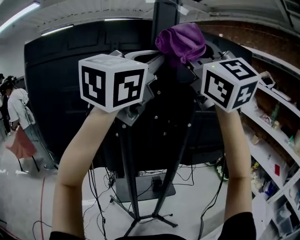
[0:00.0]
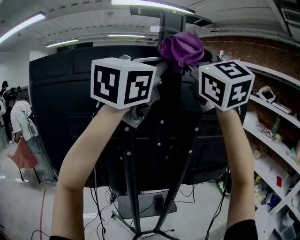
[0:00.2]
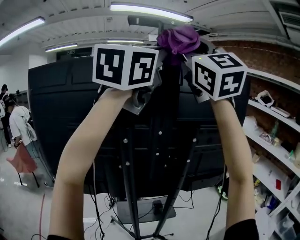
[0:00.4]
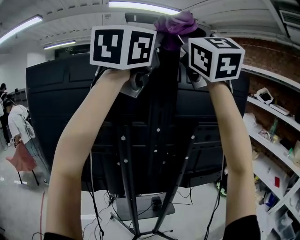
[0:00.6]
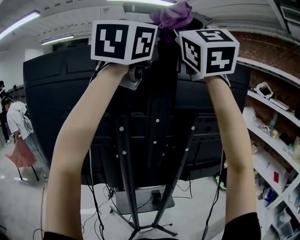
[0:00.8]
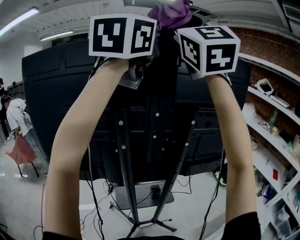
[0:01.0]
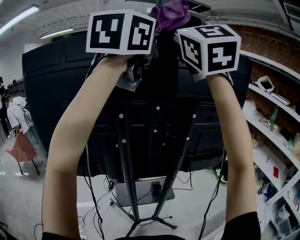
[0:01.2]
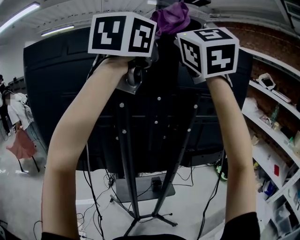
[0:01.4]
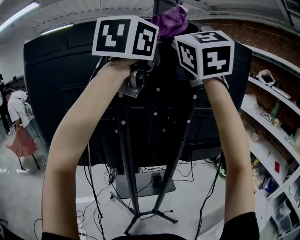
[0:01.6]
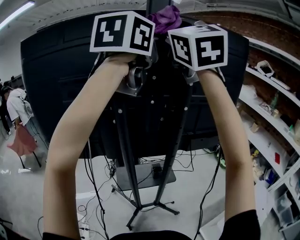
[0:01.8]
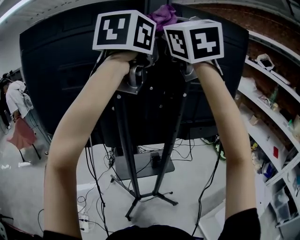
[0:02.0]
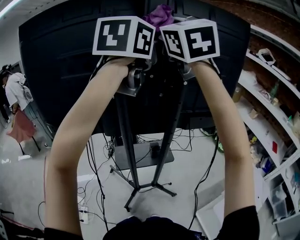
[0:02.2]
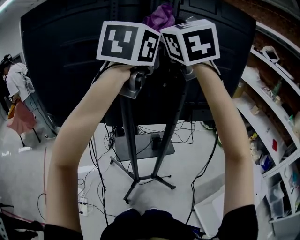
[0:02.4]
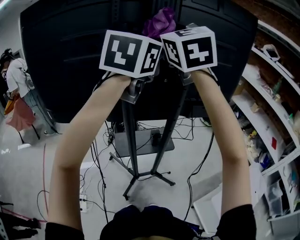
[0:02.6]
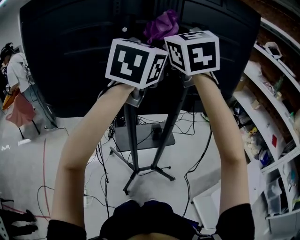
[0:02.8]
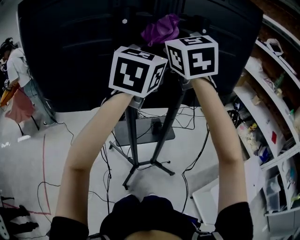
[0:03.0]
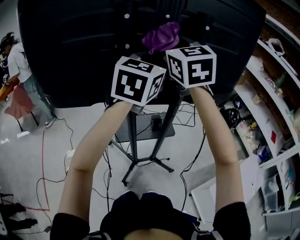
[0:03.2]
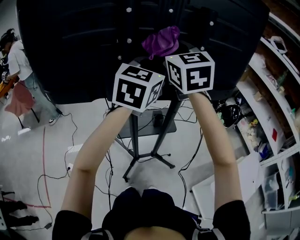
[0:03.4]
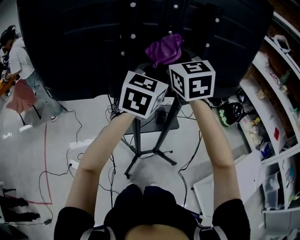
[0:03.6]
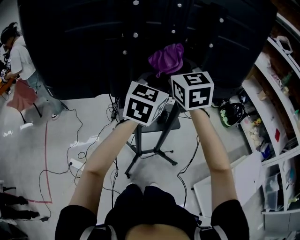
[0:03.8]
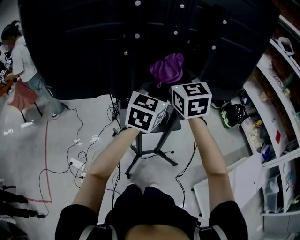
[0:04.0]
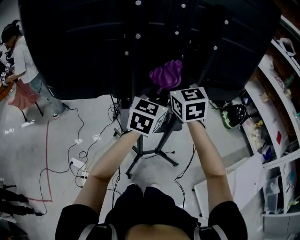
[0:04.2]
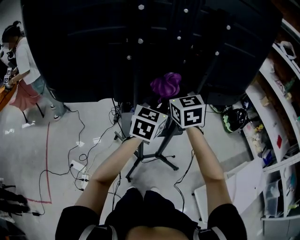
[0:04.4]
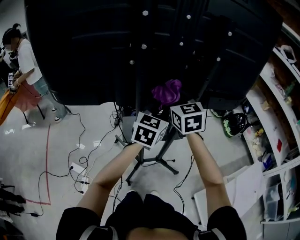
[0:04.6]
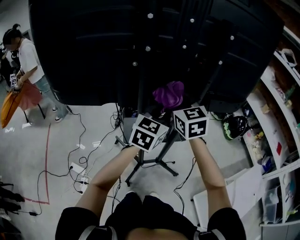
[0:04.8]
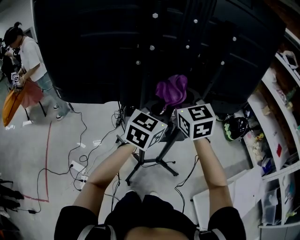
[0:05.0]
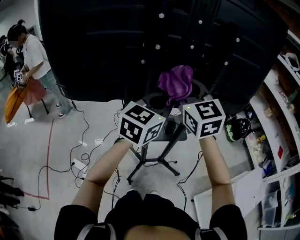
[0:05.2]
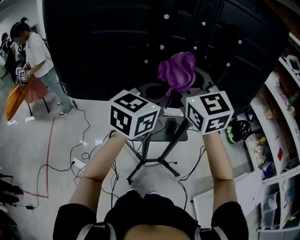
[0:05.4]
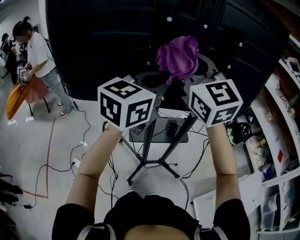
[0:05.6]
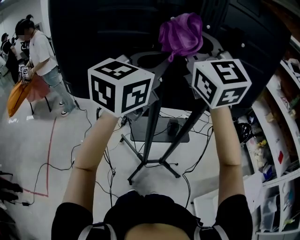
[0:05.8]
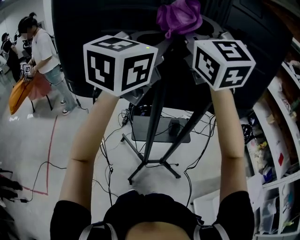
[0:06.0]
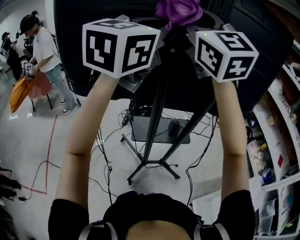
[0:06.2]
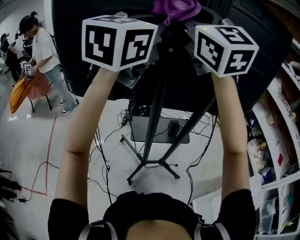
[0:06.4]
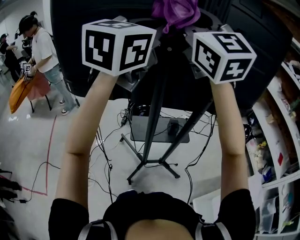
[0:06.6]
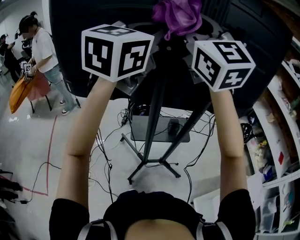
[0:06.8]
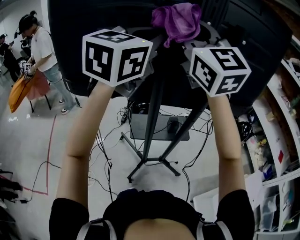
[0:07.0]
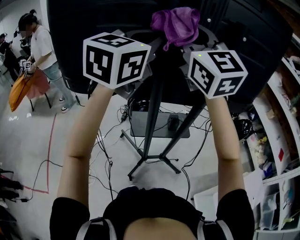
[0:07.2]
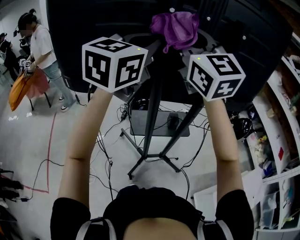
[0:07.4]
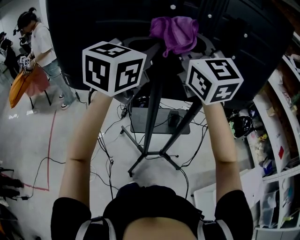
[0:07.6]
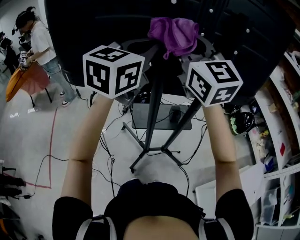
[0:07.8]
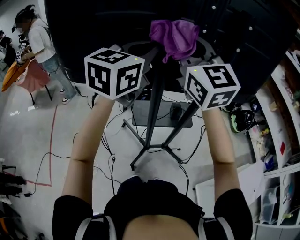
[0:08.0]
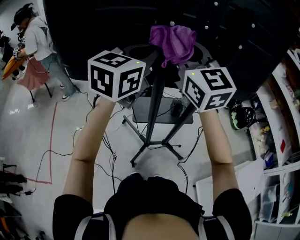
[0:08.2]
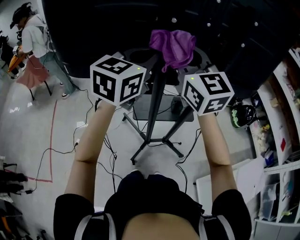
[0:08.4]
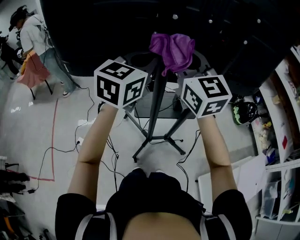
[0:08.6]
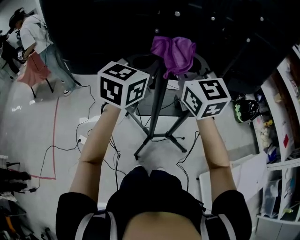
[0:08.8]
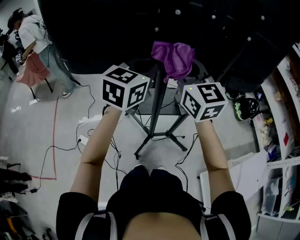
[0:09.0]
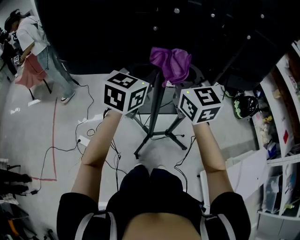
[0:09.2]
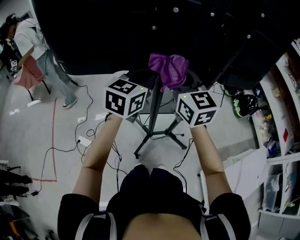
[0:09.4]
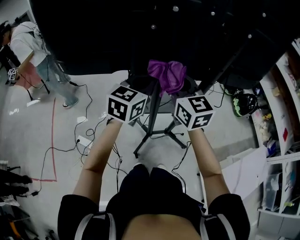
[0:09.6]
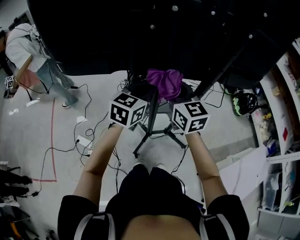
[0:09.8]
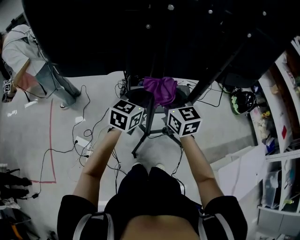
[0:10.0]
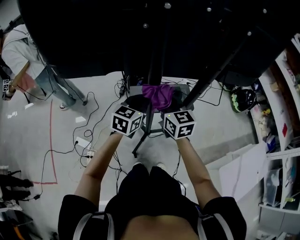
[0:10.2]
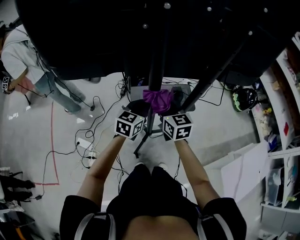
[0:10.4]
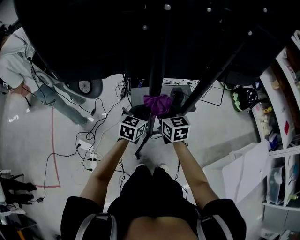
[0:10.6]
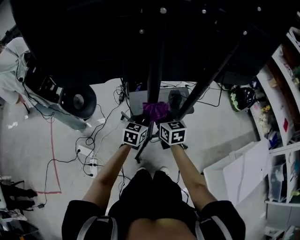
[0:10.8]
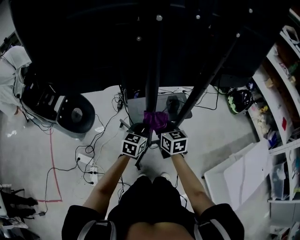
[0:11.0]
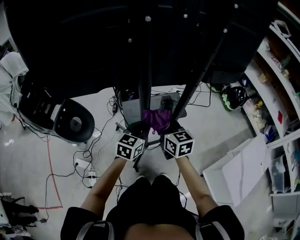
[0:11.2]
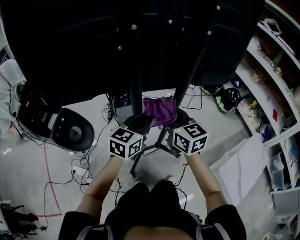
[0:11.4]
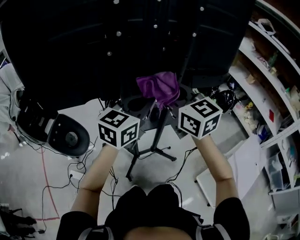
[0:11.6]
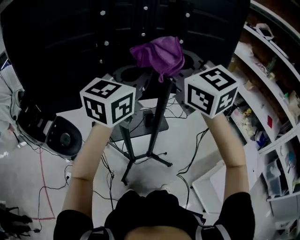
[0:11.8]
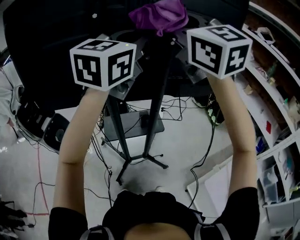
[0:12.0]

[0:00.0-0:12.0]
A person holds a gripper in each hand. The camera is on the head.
0:00.0 to 0:01.6: The left gripper travels upward and back again, roughly 15 cm each way; the right gripper moves approximately 15 cm upward and comes back.
0:01.6 to 0:03.0: The two grippers go some 25 cm downward. The right gripper turns by some 30 degrees.
0:03.0 to 0:04.4: Both grippers move downward, approximately 25 cm.
0:04.4 to 0:06.0: The left gripper travels upward and to the left by some 30 cm, and swivels about 20 degrees. The right gripper is displaced upward by roughly 30 cm, and turns by about 40 degrees.
0:06.0 to 0:07.6: The two grippers go about 5 cm downward.
0:07.6 to 0:09.0: The two grippers go some 15 cm downward.
0:09.0 to 0:10.4: The two grippers go approximately 25 cm downward. The right gripper rotates about 20 degrees.
0:10.4 to 0:12.0: Both grippers move upward, approximately 50 cm. The right gripper turns by approximately 40 degrees. Meanwhile the left gripper turns by about 30 degrees.

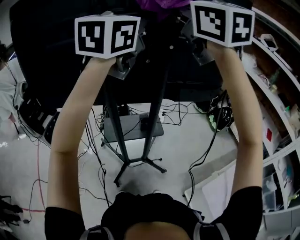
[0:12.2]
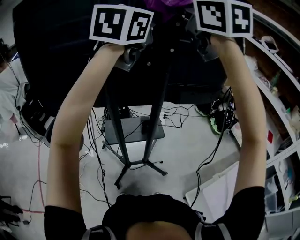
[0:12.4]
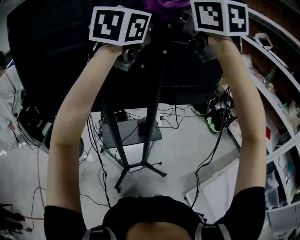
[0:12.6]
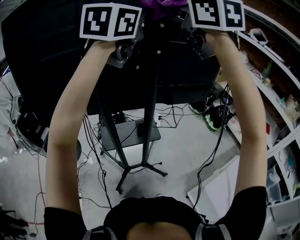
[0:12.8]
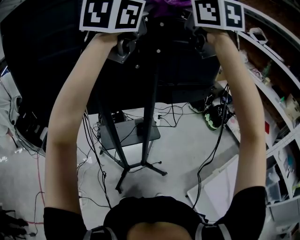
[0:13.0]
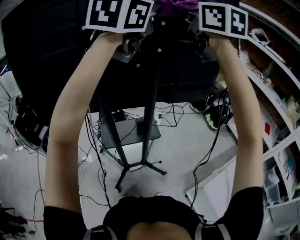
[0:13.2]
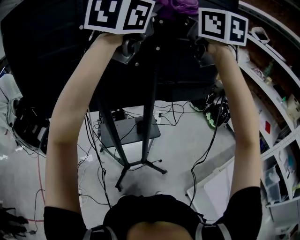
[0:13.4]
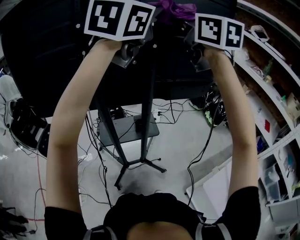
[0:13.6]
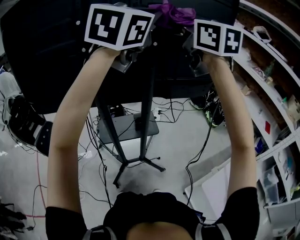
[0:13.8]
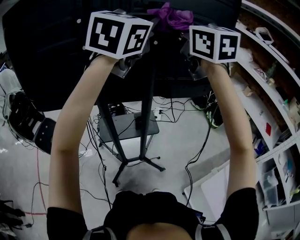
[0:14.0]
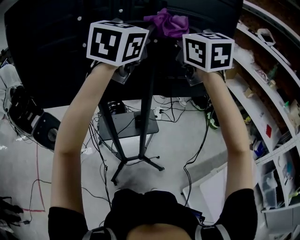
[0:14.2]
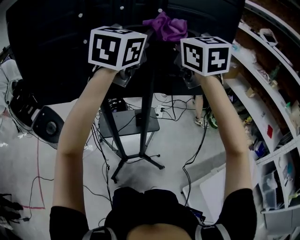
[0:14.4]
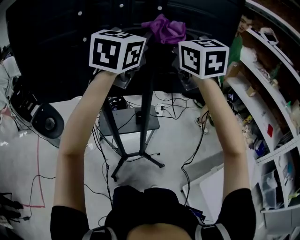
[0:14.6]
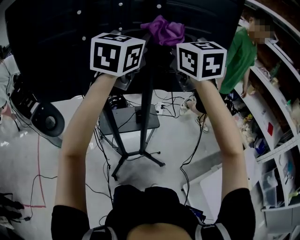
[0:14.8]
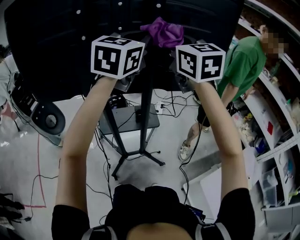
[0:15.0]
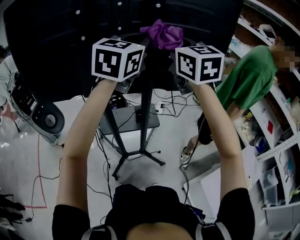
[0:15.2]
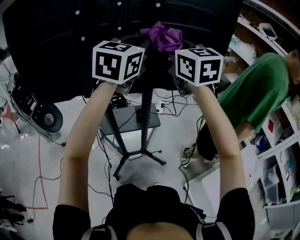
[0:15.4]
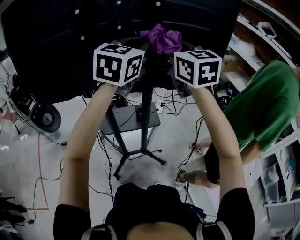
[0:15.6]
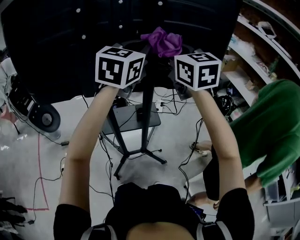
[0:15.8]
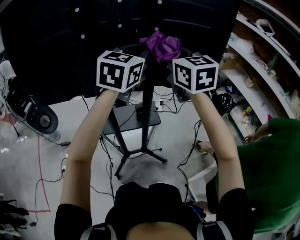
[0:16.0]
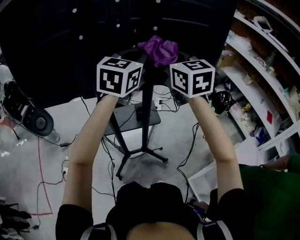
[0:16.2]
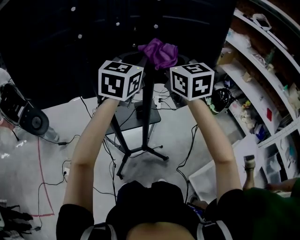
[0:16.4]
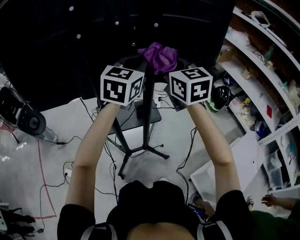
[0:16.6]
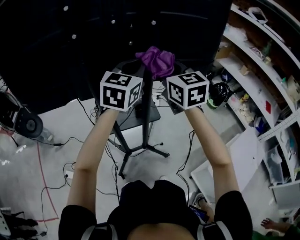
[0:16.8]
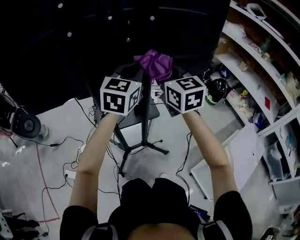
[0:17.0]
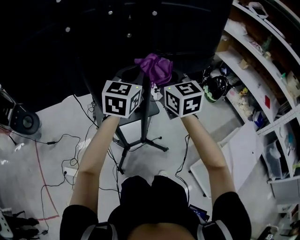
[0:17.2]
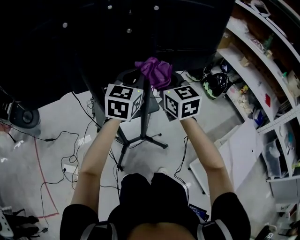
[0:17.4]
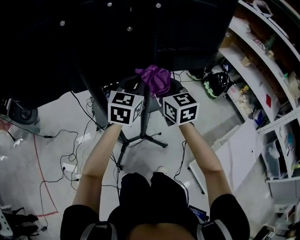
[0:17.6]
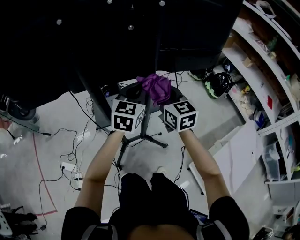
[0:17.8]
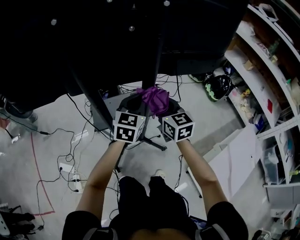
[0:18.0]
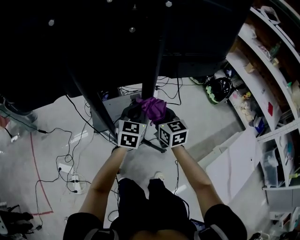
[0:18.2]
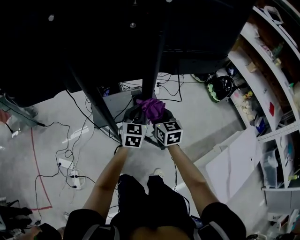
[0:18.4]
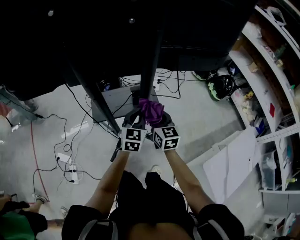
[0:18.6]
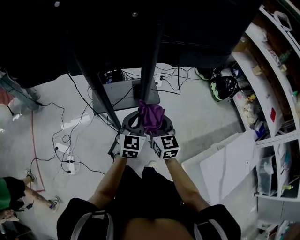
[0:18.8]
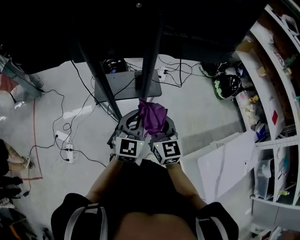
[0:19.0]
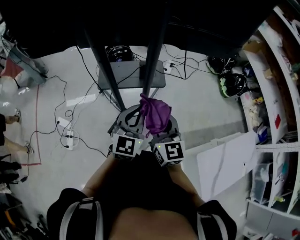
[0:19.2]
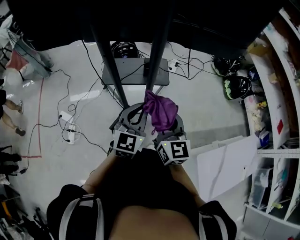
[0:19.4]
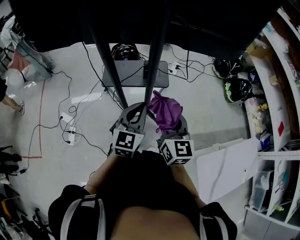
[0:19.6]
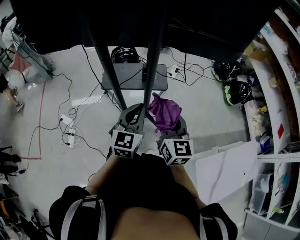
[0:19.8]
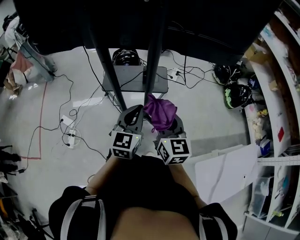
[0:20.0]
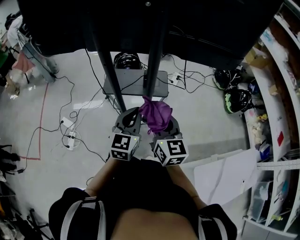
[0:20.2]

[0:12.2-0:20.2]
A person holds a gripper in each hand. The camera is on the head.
0:12.2 to 0:13.8: The left gripper moves to the right, approximately 5 cm. Meanwhile the right gripper is displaced to the right and downward by about 10 cm.
0:13.8 to 0:15.4: Both grippers move downward, some 10 cm.
0:15.4 to 0:17.0: Both grippers travel together downward, approximately 15 cm.
0:17.0 to 0:18.6: The grippers both shift downward by roughly 30 cm.
0:18.6 to 0:20.2: The two grippers go some 15 cm backward and upward.

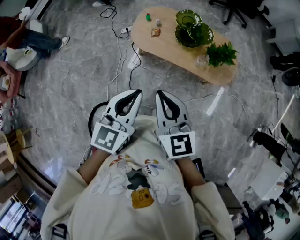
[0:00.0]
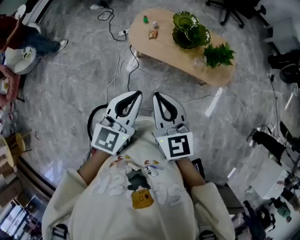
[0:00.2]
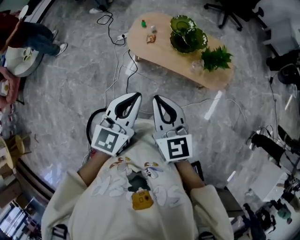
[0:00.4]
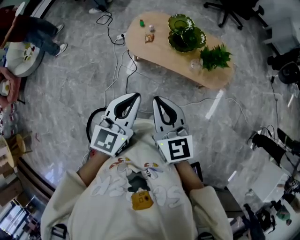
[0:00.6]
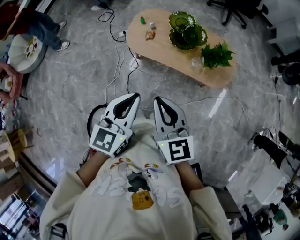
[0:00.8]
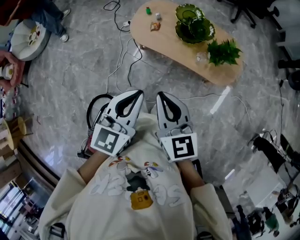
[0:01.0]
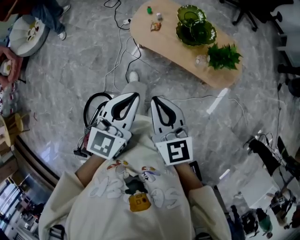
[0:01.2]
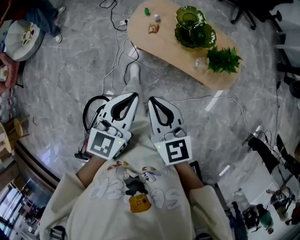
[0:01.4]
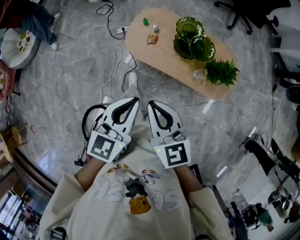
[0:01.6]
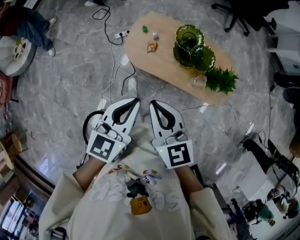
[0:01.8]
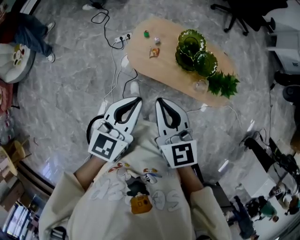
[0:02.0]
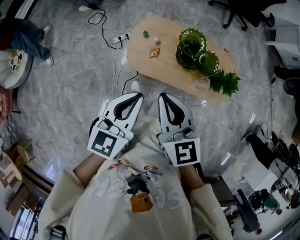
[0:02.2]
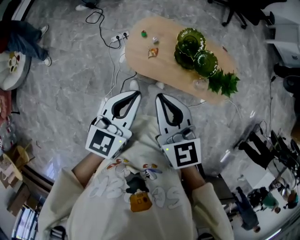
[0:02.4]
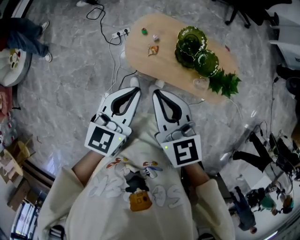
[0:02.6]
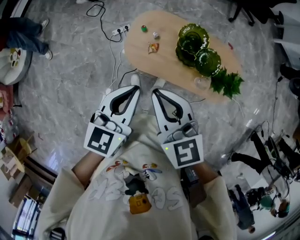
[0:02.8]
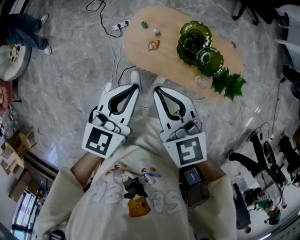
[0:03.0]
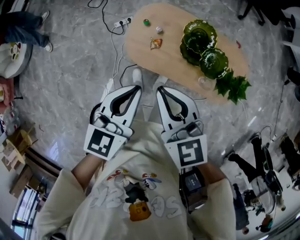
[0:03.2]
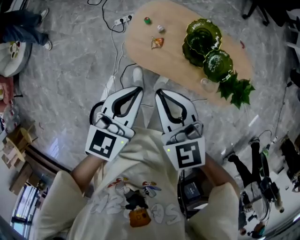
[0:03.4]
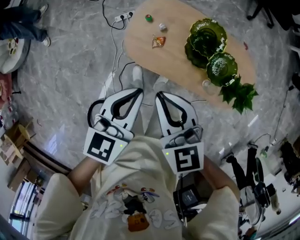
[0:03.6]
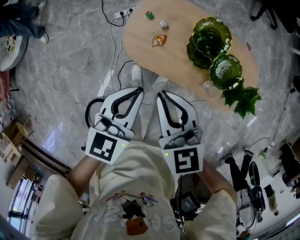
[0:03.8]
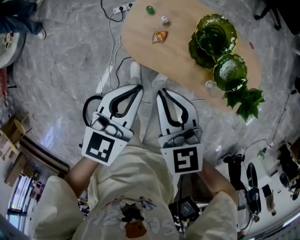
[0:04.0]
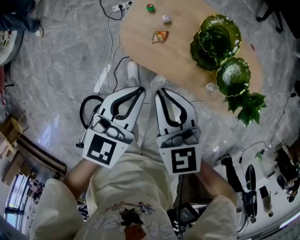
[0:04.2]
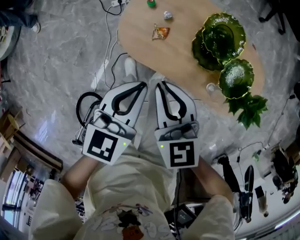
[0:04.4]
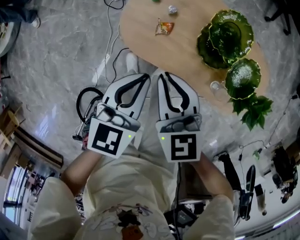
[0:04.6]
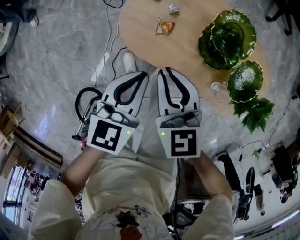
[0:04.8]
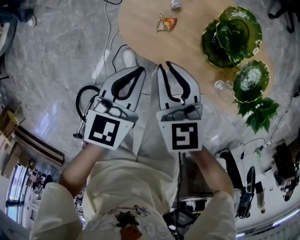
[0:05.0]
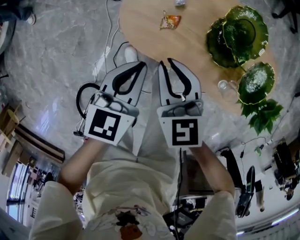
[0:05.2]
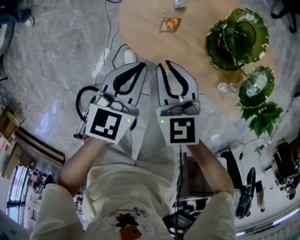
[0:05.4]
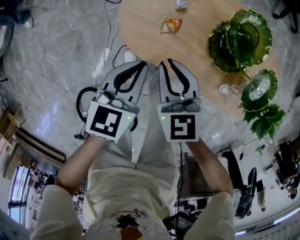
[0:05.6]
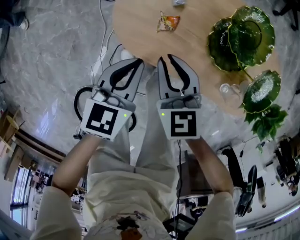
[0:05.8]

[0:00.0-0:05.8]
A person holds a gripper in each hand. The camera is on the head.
0:00.0 to 0:01.4: Both grippers move forward, some 5 cm.
0:01.4 to 0:02.8: Both grippers move forward, roughly 25 cm.
0:02.8 to 0:04.4: Both grippers travel together downward, about 25 cm.
0:04.4 to 0:05.8: Both grippers move downward, approximately 15 cm.
